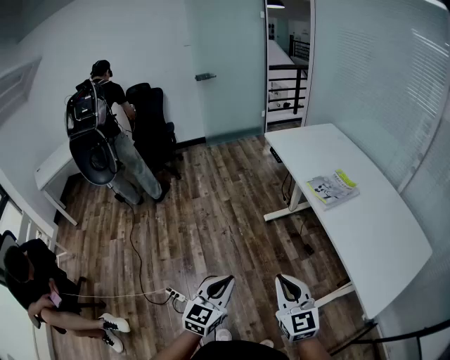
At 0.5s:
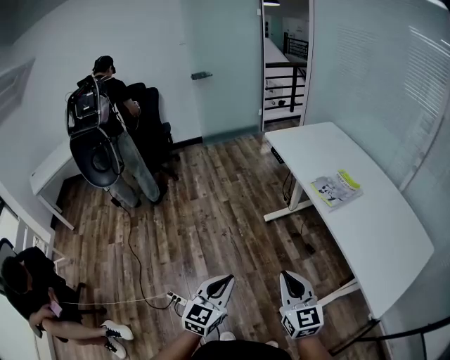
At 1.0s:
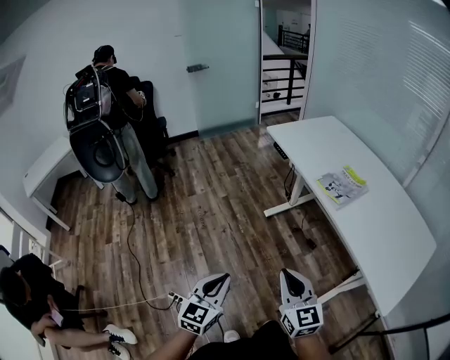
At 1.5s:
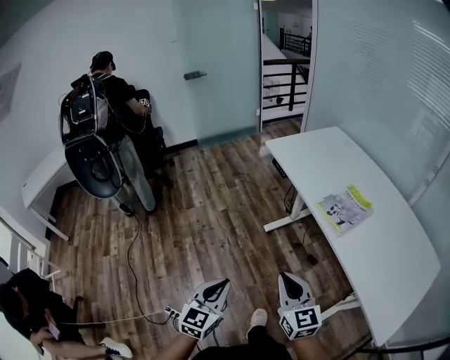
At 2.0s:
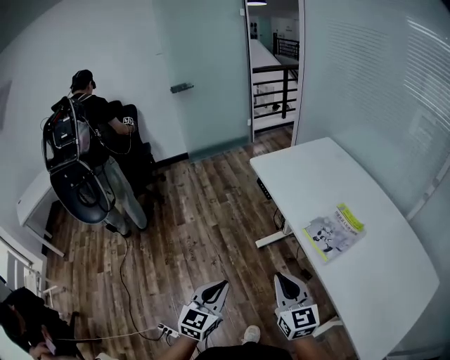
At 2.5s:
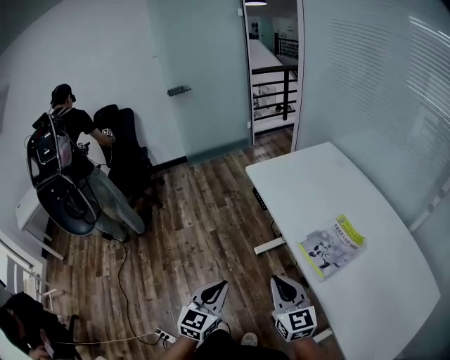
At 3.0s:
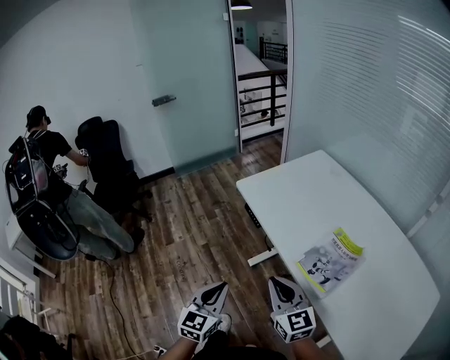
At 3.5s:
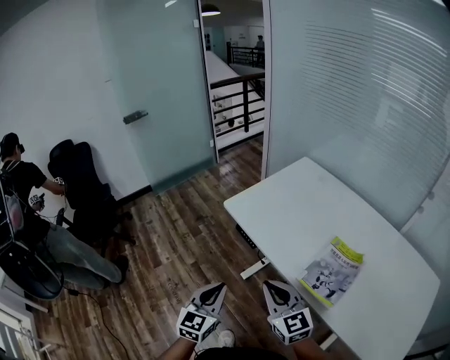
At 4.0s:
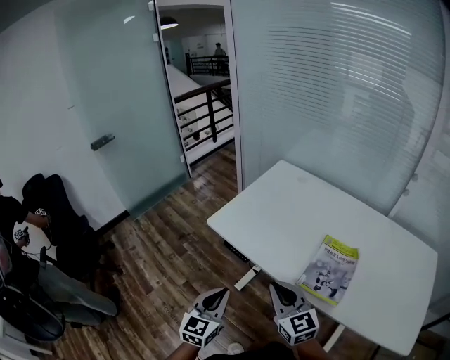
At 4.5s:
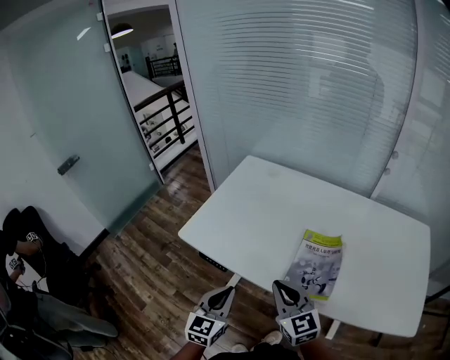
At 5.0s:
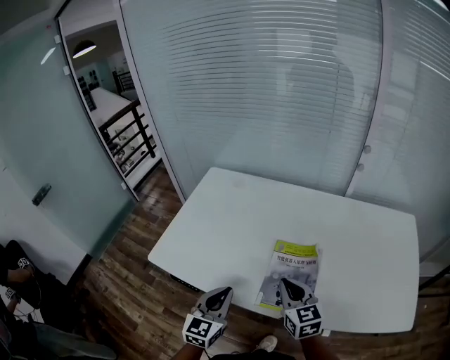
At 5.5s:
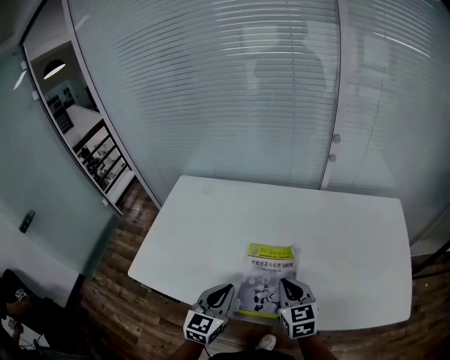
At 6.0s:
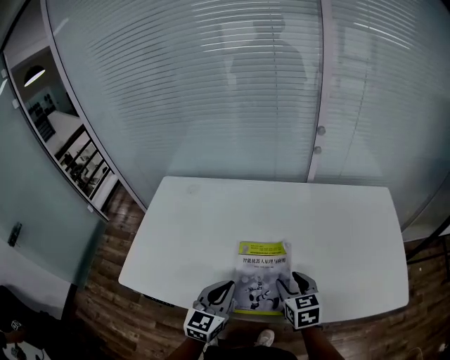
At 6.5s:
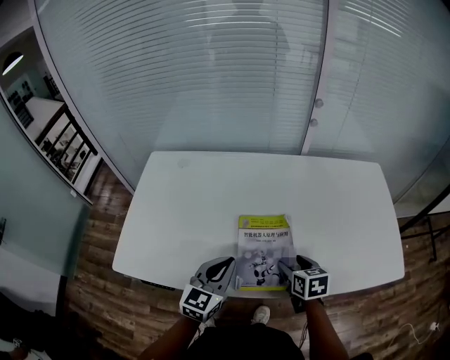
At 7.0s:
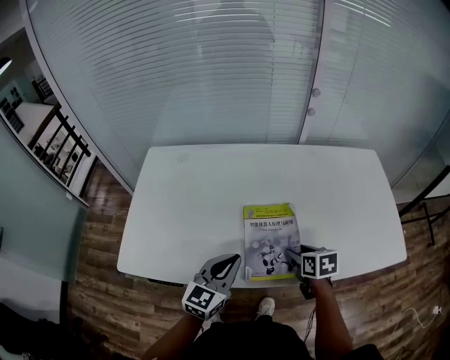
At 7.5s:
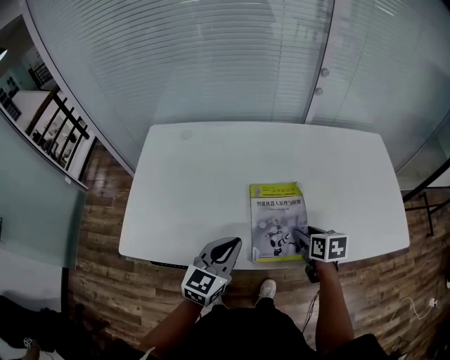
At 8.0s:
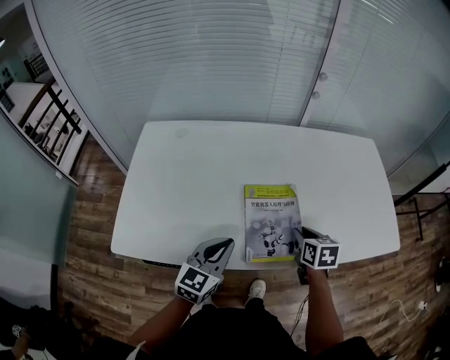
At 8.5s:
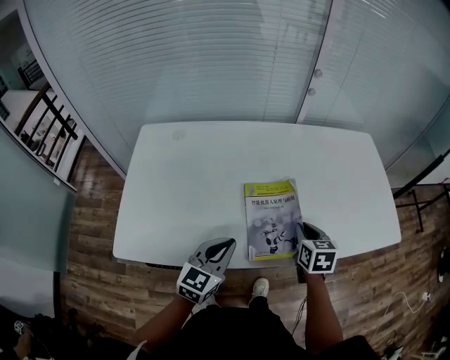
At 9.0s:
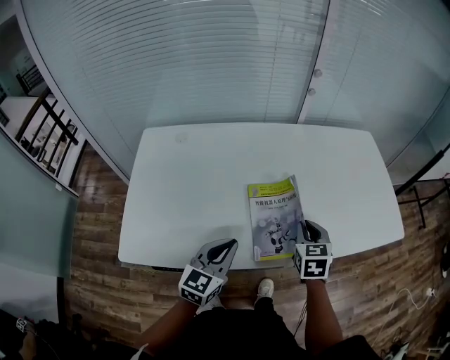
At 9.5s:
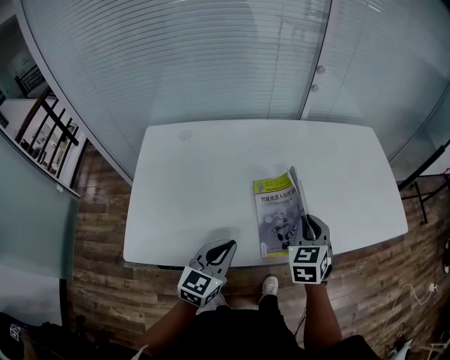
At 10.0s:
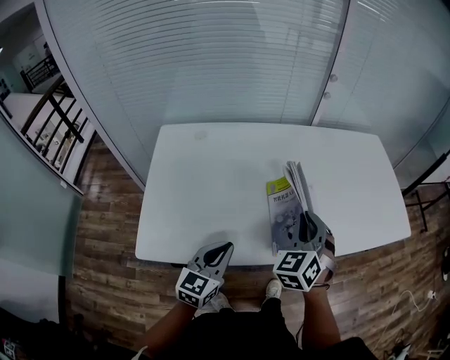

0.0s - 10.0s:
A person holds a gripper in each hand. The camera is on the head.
0.0s - 2.0s: Both grippers travel together forward, roughly 30 cm.
2.0s - 4.0s: The grippers both shift forward by some 25 cm. The left gripper rotates roughly 20 degrees.
4.0s - 6.0s: The right gripper changes place by approximately 35 cm, swivels approximately 50 degrees, and opens up. The left gripper changes place by about 30 cm, and swivels some 30 degrees.
6.0s - 8.0s: The left gripper changes place by some 5 cm, while the right gripper swivels some 20 degrees, and closes.
8.0s - 10.0s: The left gripper heads to the left and backward, covering approximately 10 cm. Meanwhile the right gripper heads upward and to the left, covering some 20 cm, and turns by roughly 60 degrees.

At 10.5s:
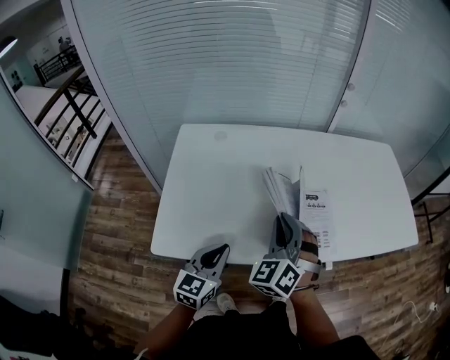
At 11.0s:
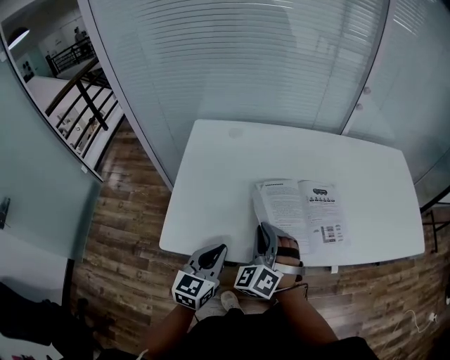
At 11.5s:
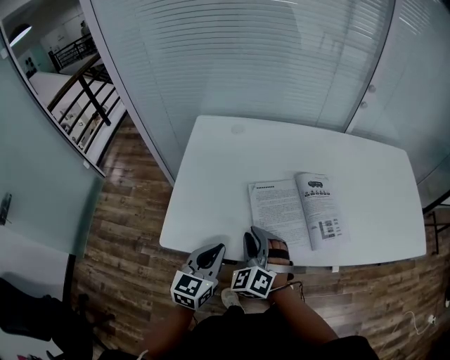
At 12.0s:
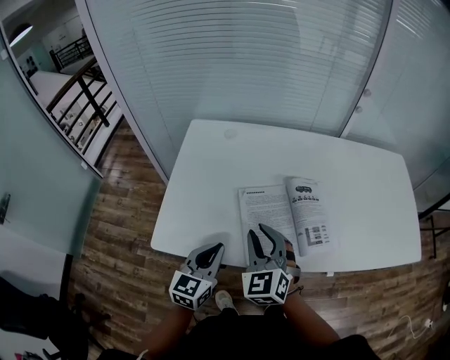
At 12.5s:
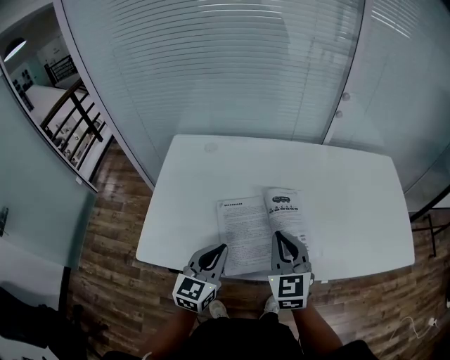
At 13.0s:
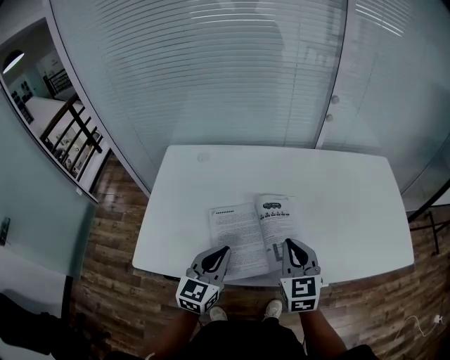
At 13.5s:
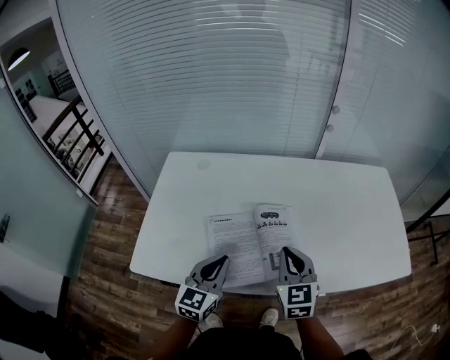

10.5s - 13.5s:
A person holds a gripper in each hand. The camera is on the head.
10.5s - 12.0s: The right gripper goes roughly 5 cm to the left, and changes its angle by approximately 30 degrees.
12.0s - 13.5s: The left gripper goes about 10 cm to the right and forward, while the right gripper moves to the right, roughly 20 cm, swivels approximately 20 degrees, and closes.

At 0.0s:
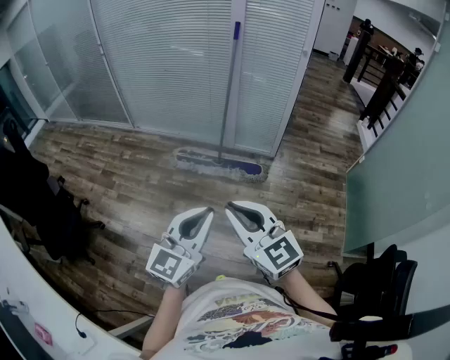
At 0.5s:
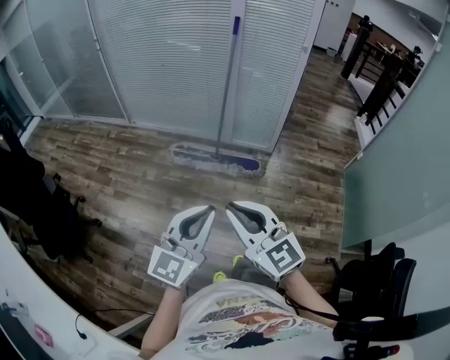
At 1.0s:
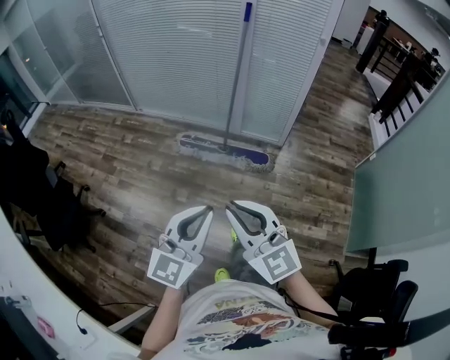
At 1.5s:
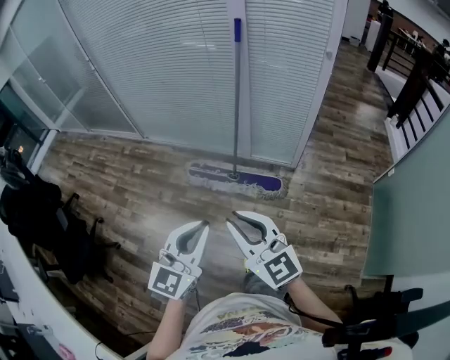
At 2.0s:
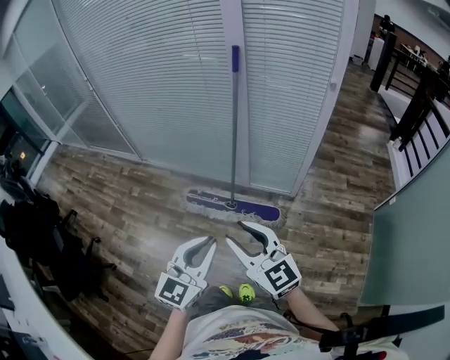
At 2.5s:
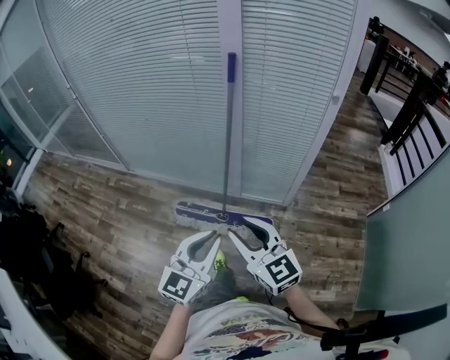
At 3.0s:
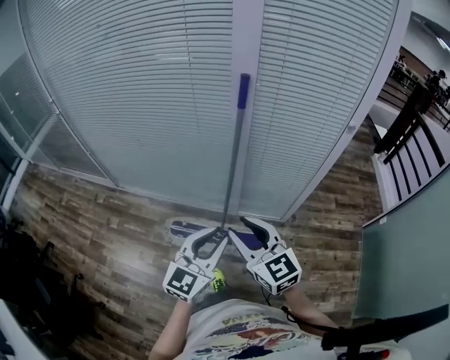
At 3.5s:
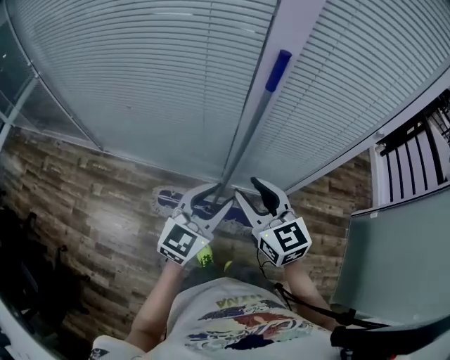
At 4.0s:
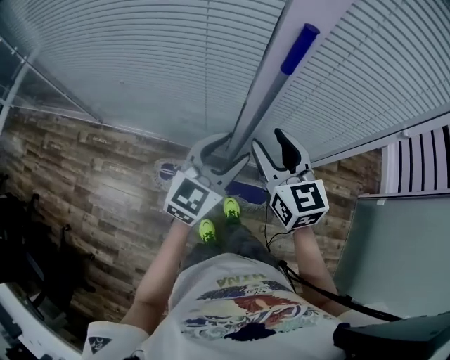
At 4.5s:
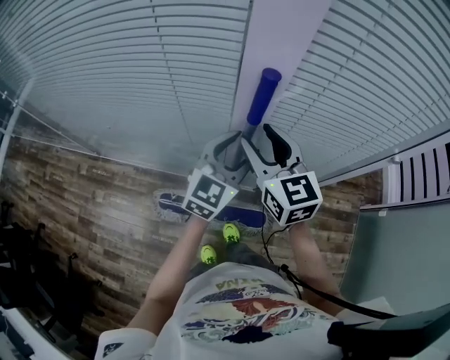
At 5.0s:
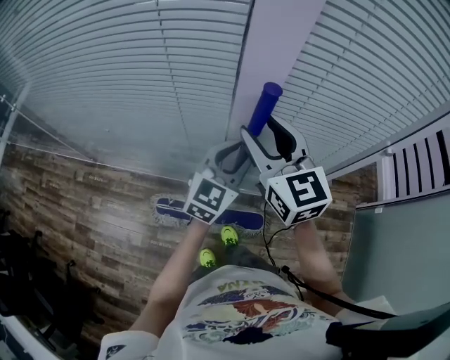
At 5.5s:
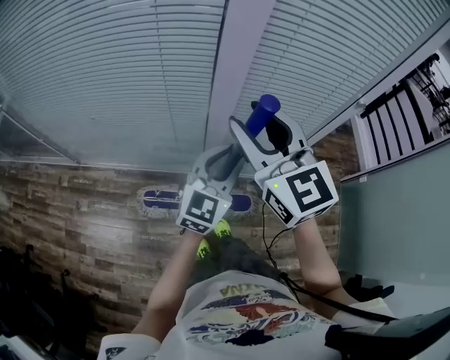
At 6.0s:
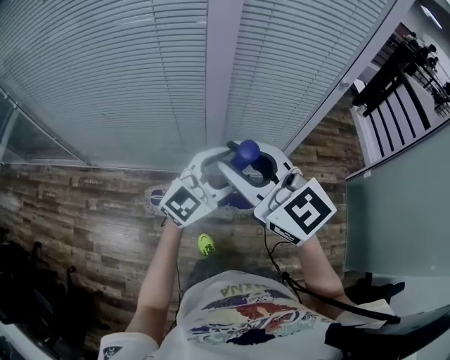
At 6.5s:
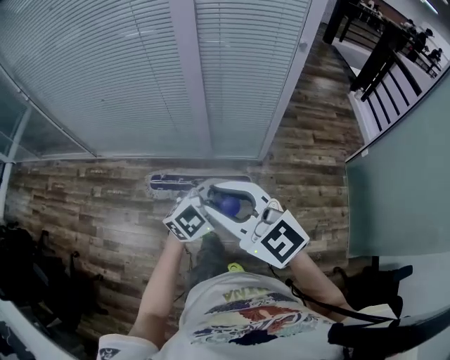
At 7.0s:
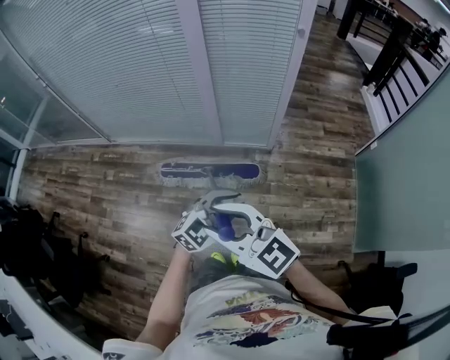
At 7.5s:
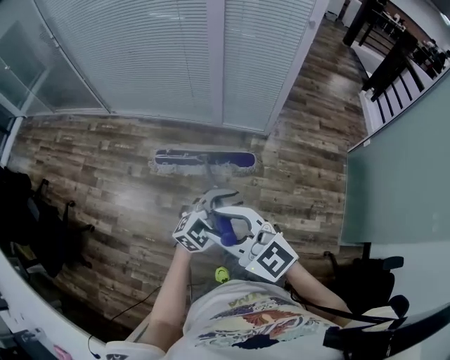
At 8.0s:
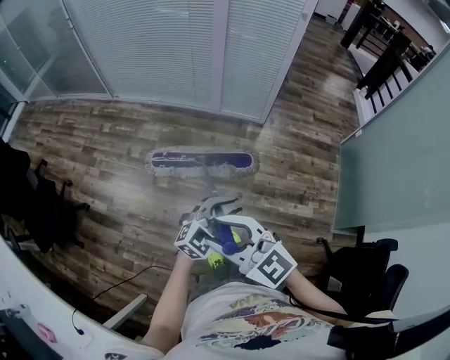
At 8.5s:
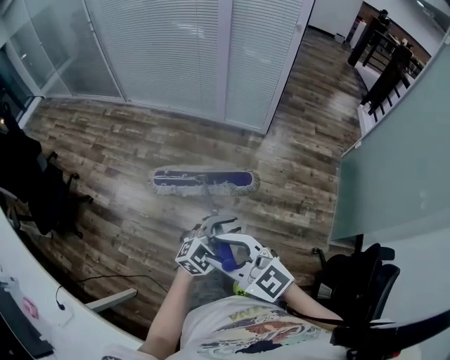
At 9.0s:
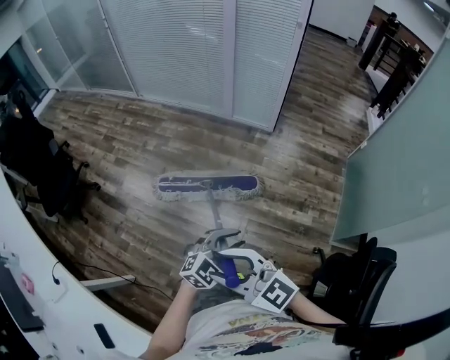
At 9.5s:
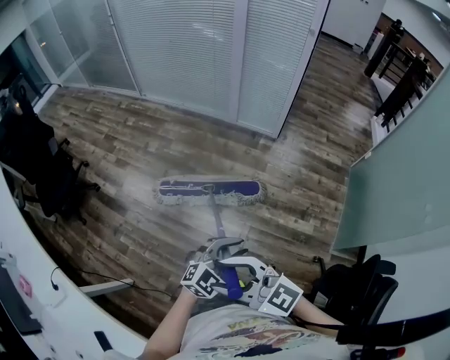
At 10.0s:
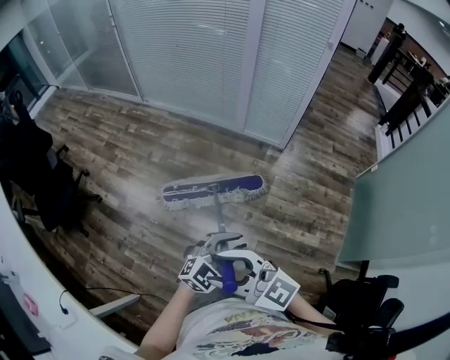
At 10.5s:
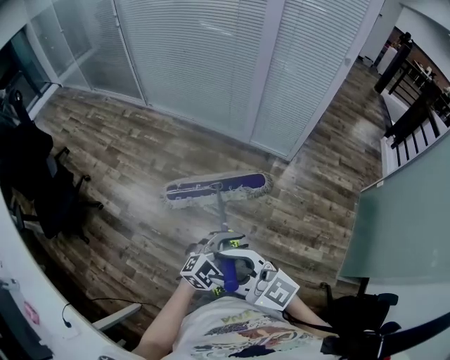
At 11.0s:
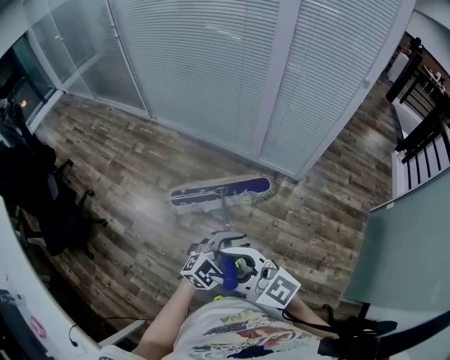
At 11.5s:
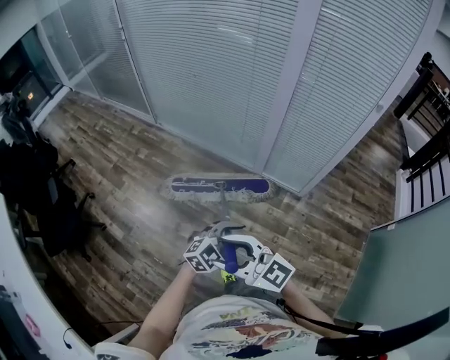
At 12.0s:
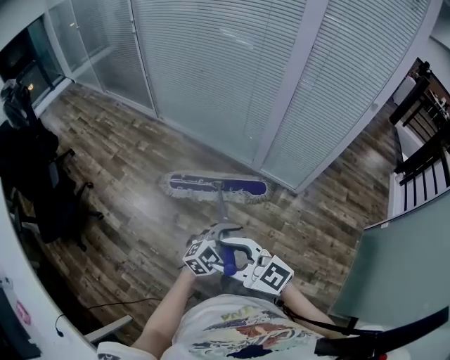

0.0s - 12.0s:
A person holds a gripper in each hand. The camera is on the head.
0.0s - 2.0s: The two grippers travel together, forward, roughly 40 cm. The right gripper opens.
2.0s - 4.0s: Both grippers are carried forward, roughly 60 cm. The right gripper swivels some 30 degrees; the left gripper opens up.
4.0s - 6.0s: The right gripper goes about 25 cm backward and upward, and turns by approximately 20 degrees, while the left gripper moves backward and to the right, some 20 cm, and turns by roughly 30 degrees.
6.0s - 8.0s: Both grippers are carried backward, roughly 80 cm. The left gripper swivels roughly 20 degrees, and closes its fingers; the right gripper swivels roughly 20 degrees.
10.0s - 12.0s: The left gripper ends up some 35 cm from where it was, while the right gripper changes place by roughly 35 cm.

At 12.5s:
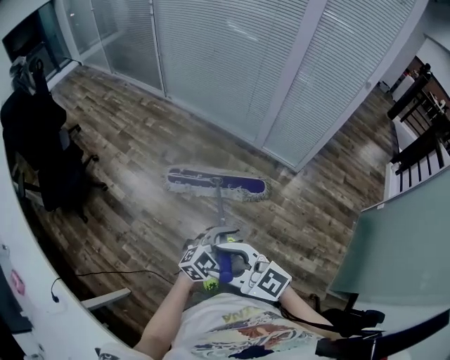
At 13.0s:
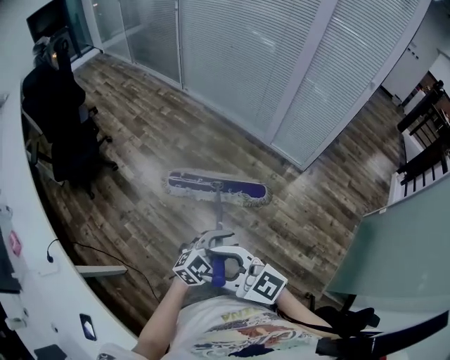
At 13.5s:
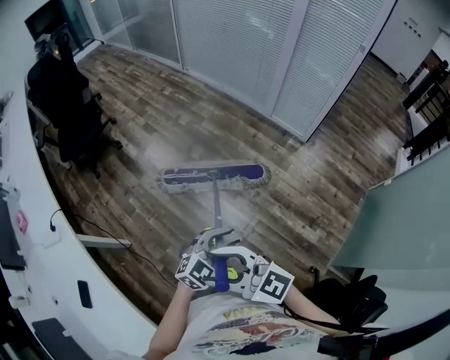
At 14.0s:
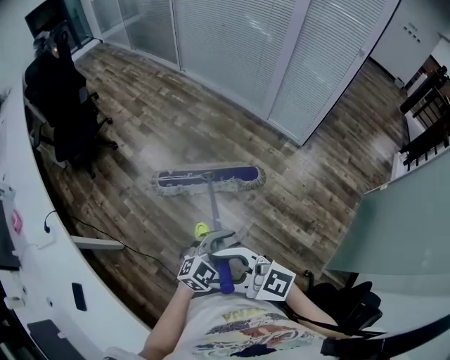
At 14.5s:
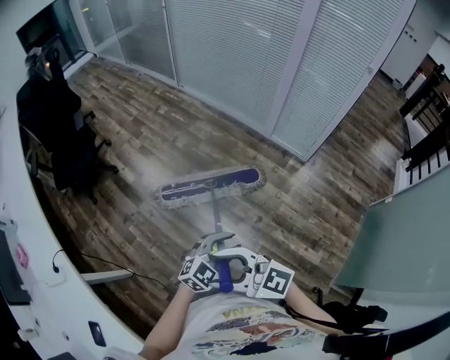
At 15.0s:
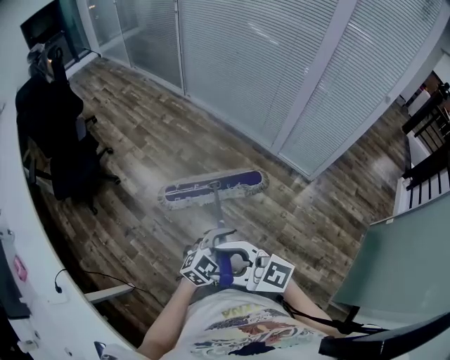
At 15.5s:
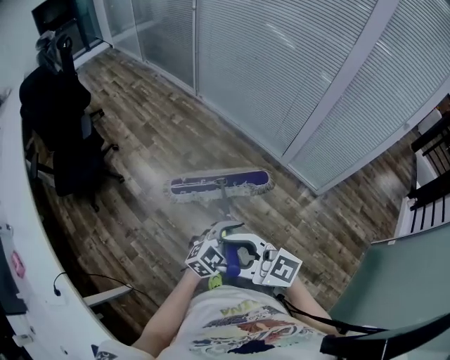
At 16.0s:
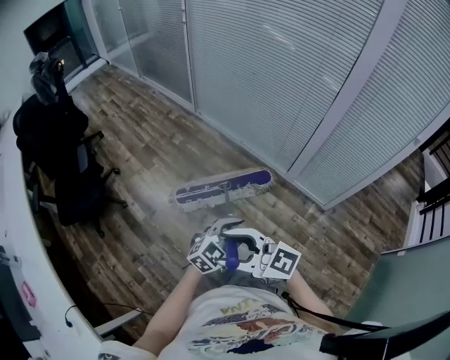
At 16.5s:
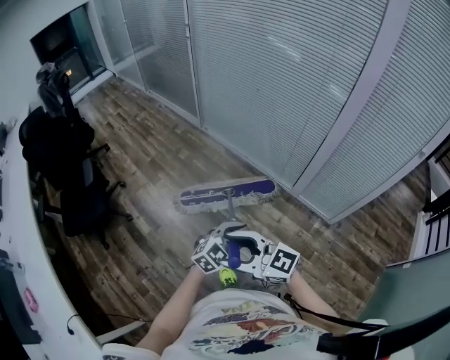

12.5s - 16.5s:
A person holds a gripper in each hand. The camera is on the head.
14.5s - 16.5s: The pair of grippers is taken about 50 cm.
